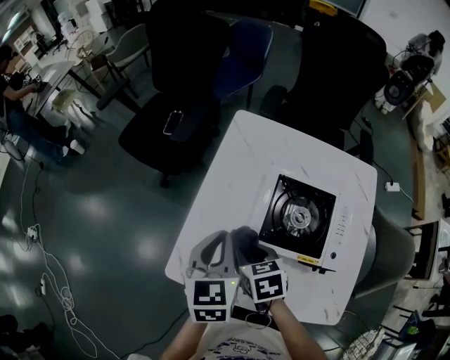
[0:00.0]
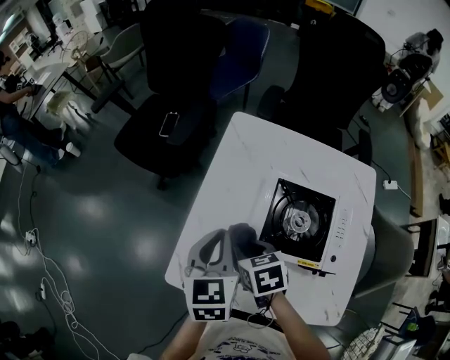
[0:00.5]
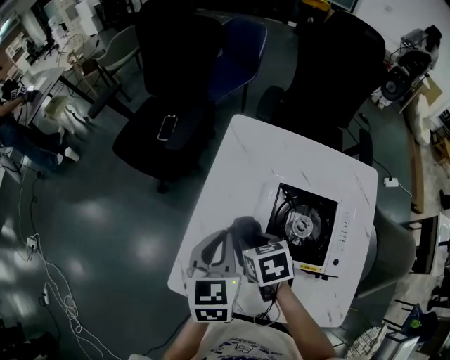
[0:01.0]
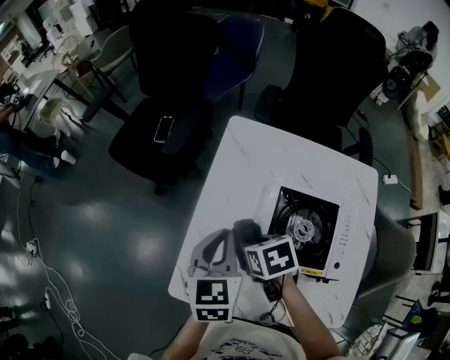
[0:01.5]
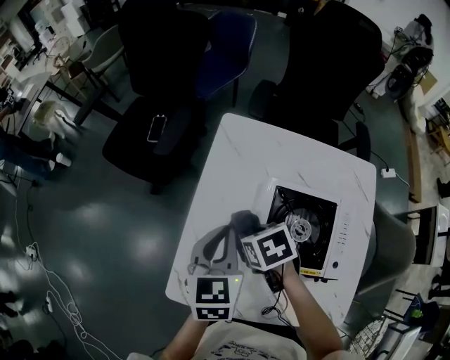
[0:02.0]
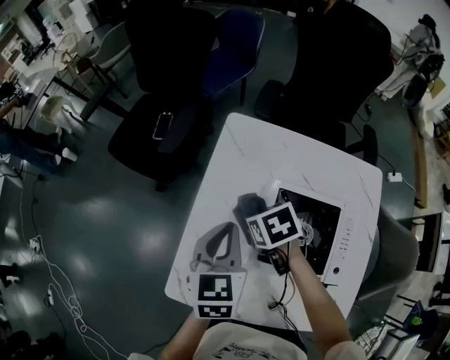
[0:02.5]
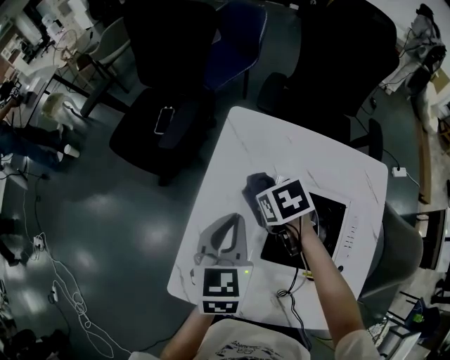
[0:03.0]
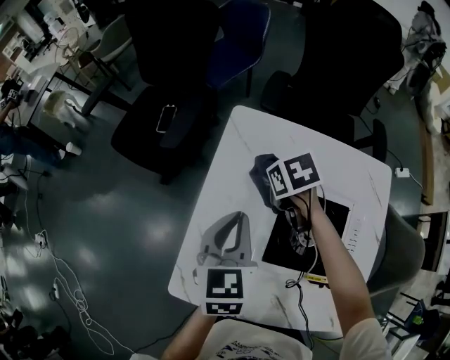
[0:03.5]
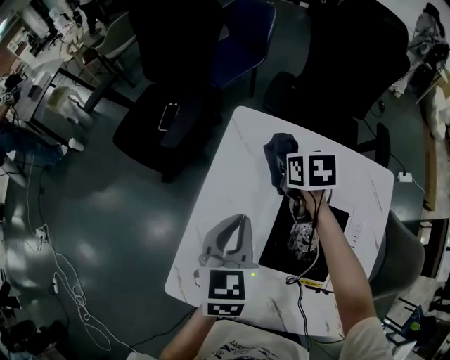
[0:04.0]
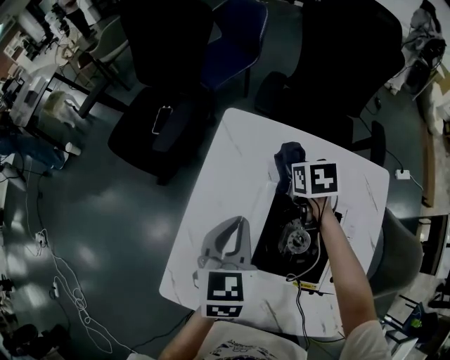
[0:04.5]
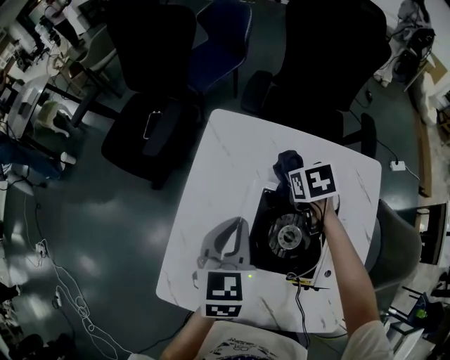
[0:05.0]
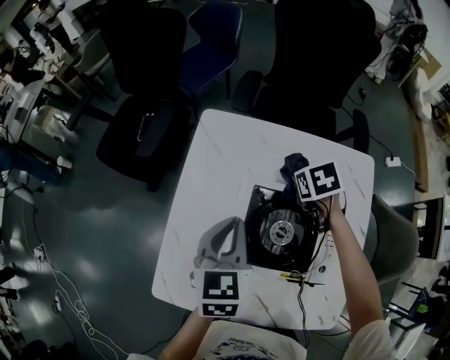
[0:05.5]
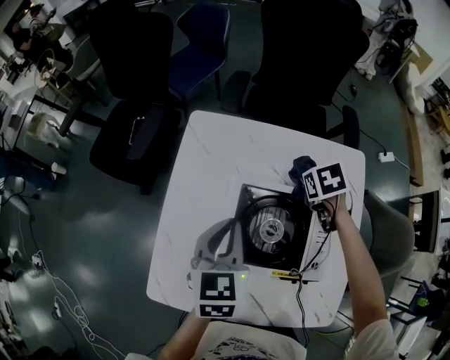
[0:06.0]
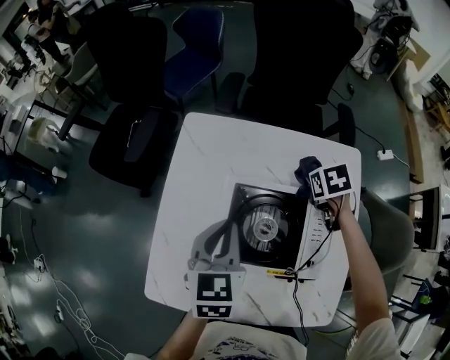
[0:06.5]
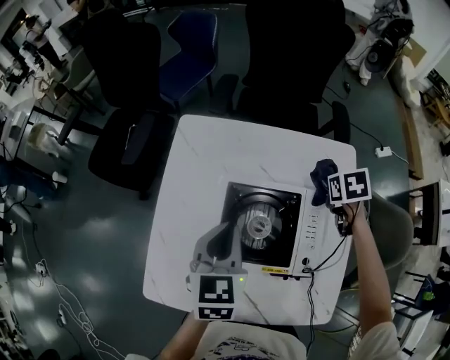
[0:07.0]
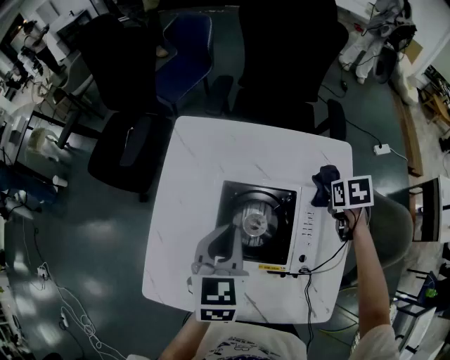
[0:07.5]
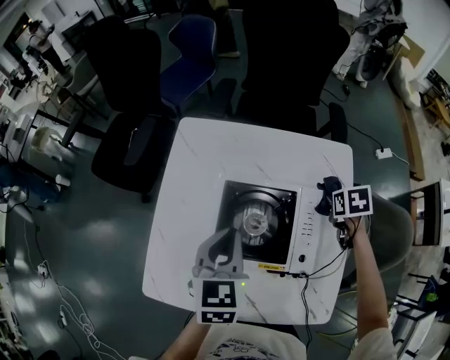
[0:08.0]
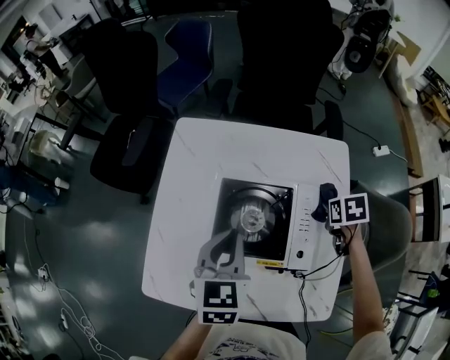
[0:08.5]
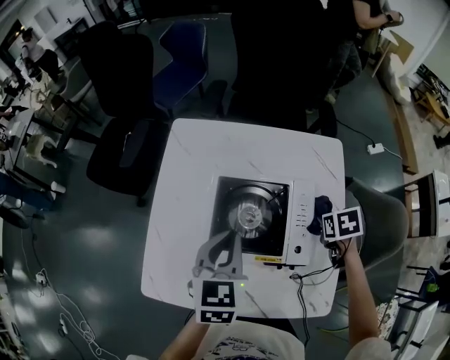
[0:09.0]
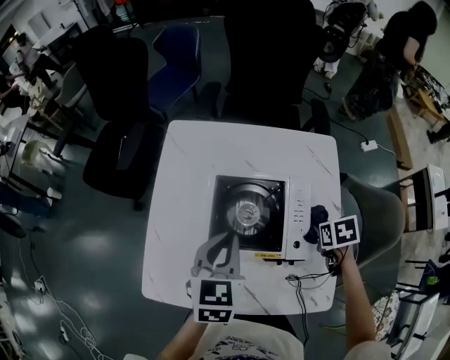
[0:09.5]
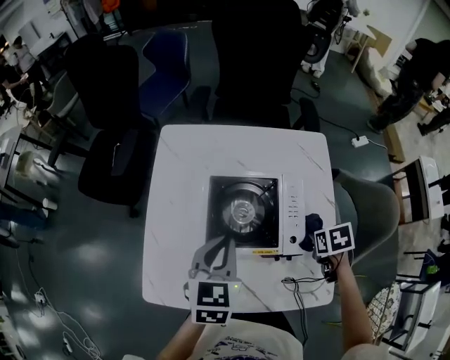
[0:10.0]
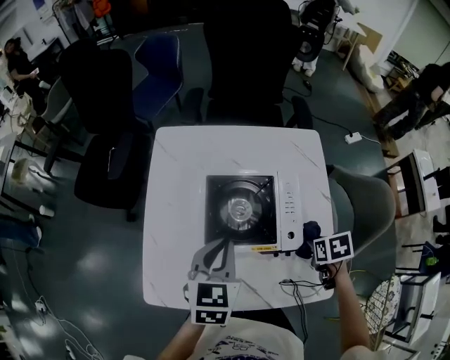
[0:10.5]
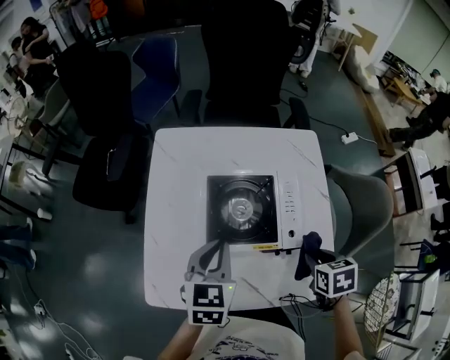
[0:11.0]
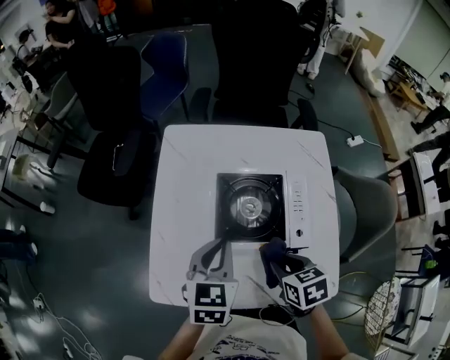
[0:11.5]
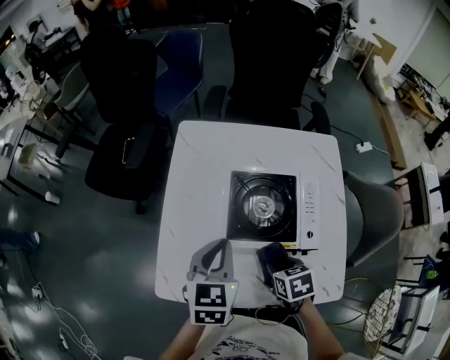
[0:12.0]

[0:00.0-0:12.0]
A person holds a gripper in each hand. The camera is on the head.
0:00.0 to 0:02.0: Both grippers travel together forward, approximately 10 cm.
0:02.0 to 0:04.0: The left gripper ends up approximately 5 cm from where it was. The right gripper heads forward and to the right, covering roughly 25 cm, and changes its angle by about 20 degrees.
0:04.0 to 0:06.0: The right gripper heads to the right and backward, covering some 20 cm, and swivels about 20 degrees. The left gripper shifts about 10 cm to the right.
0:06.0 to 0:08.0: The left gripper ends up some 5 cm from where it was; the right gripper goes some 15 cm to the right and backward.
0:08.0 to 0:10.0: The left gripper ends up about 5 cm from where it was, while the right gripper shifts by approximately 20 cm.
0:10.0 to 0:12.0: The right gripper changes place by about 20 cm; the left gripper moves some 10 cm.

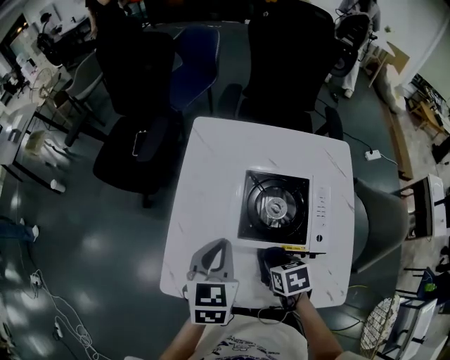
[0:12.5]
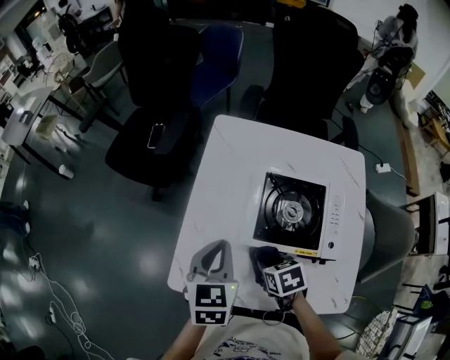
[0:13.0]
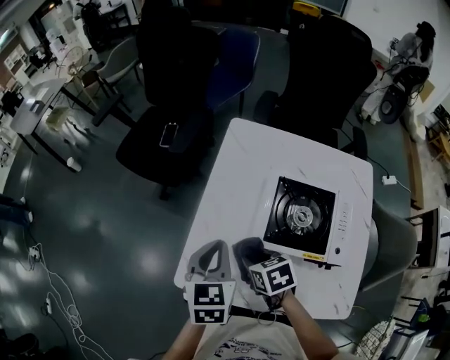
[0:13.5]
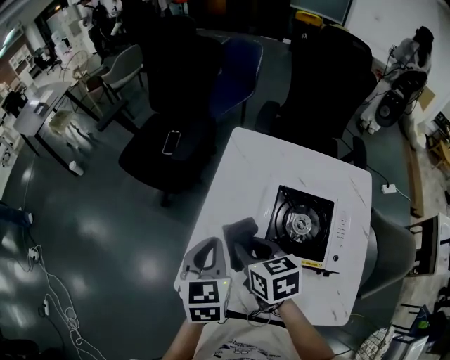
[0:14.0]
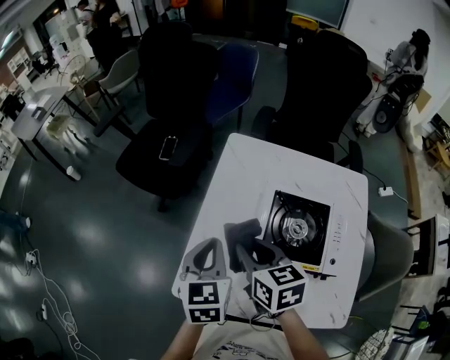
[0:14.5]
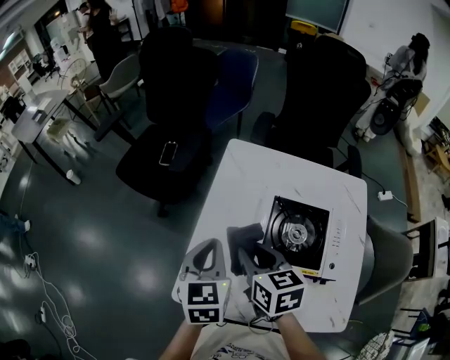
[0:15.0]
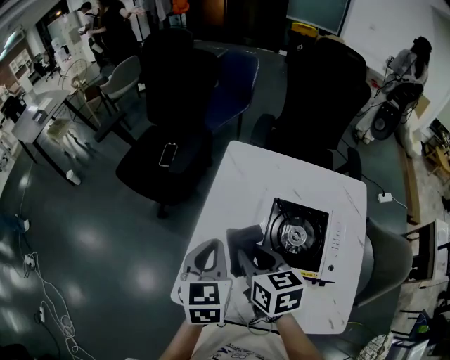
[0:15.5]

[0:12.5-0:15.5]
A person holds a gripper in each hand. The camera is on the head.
0:12.5 to 0:14.0: The right gripper goes roughly 25 cm to the left, upward and forward, and turns by roughly 30 degrees. Meanwhile the left gripper heads to the left, covering some 10 cm.
0:14.0 to 0:15.5: The grippers make only small movements.

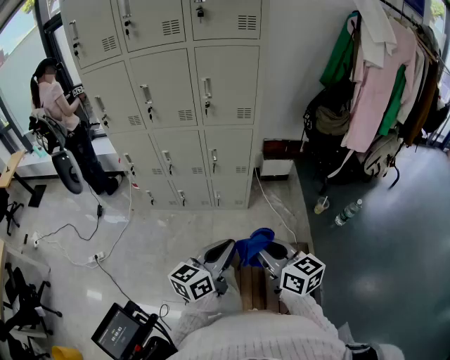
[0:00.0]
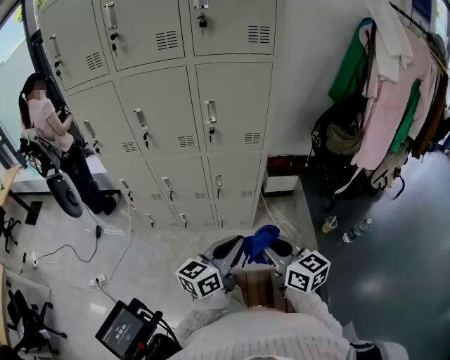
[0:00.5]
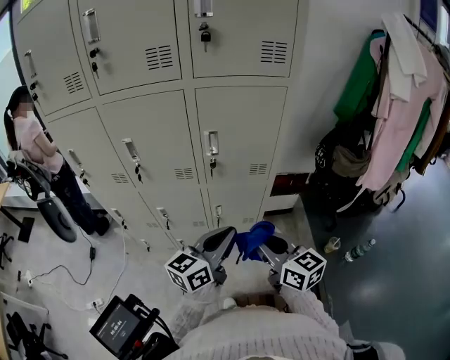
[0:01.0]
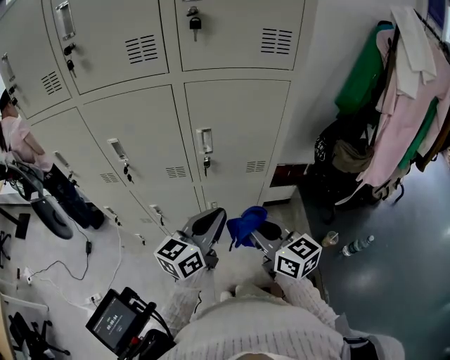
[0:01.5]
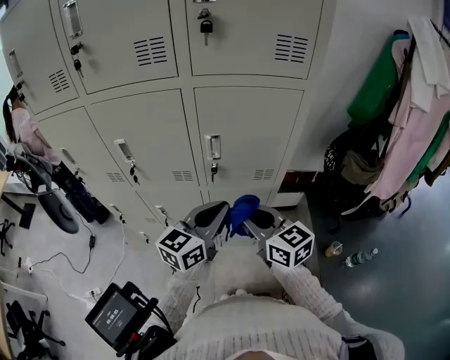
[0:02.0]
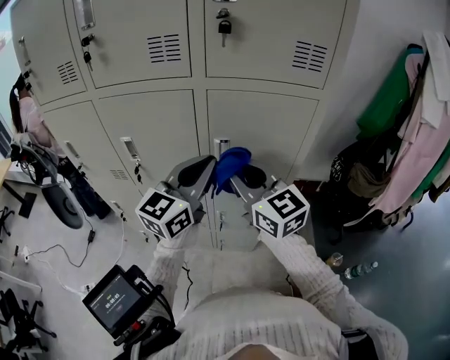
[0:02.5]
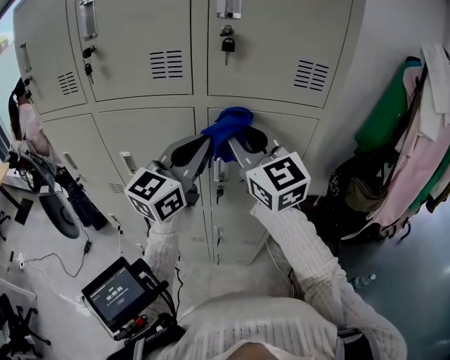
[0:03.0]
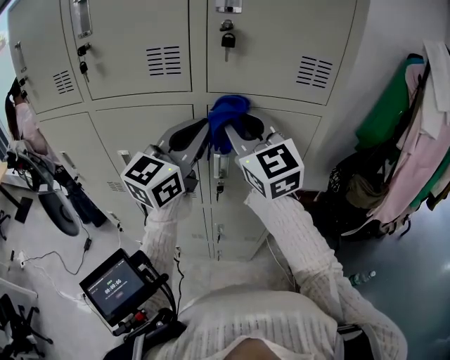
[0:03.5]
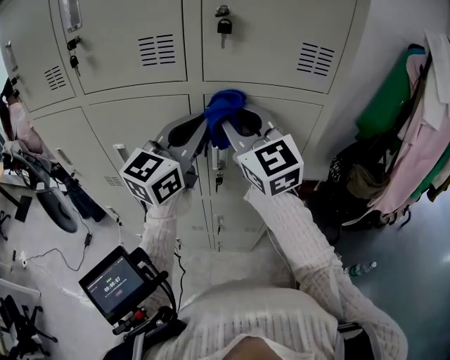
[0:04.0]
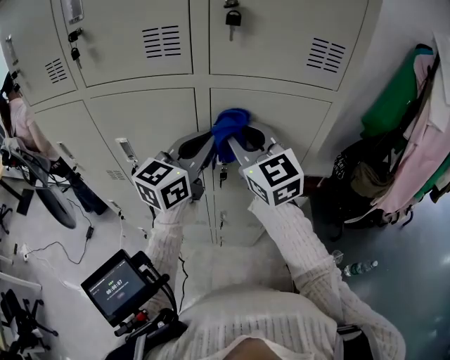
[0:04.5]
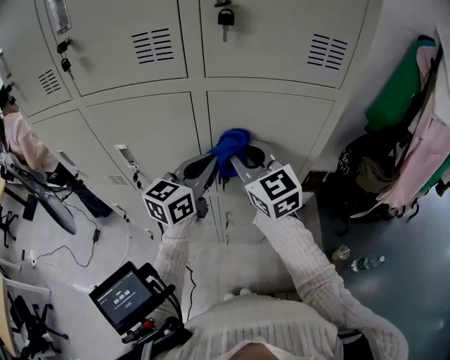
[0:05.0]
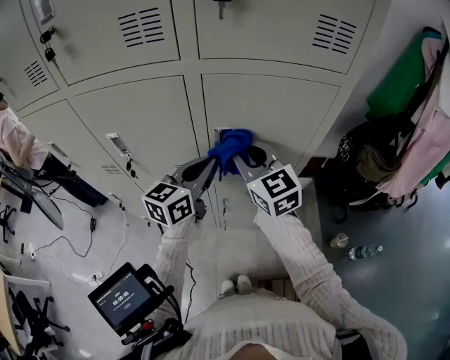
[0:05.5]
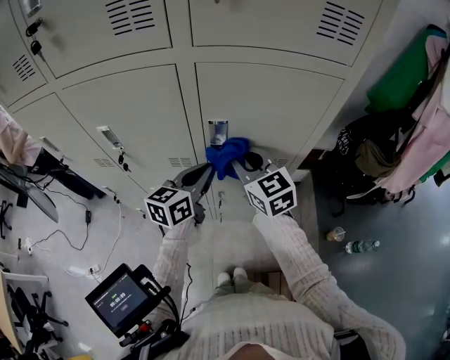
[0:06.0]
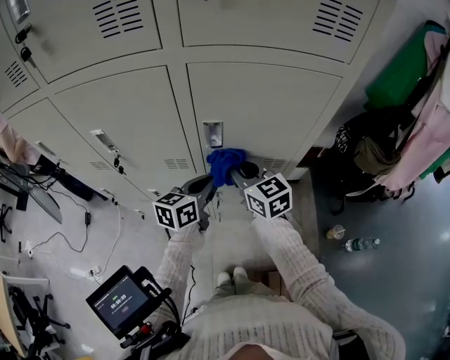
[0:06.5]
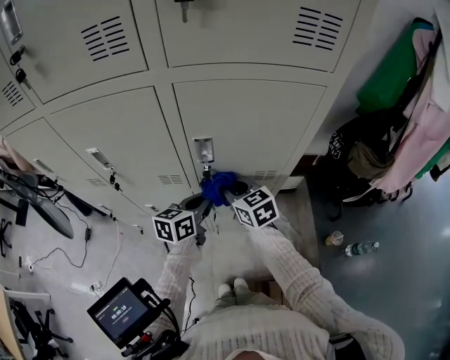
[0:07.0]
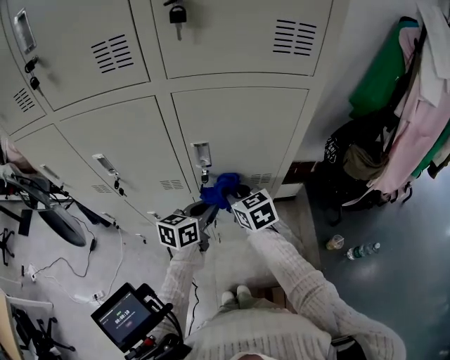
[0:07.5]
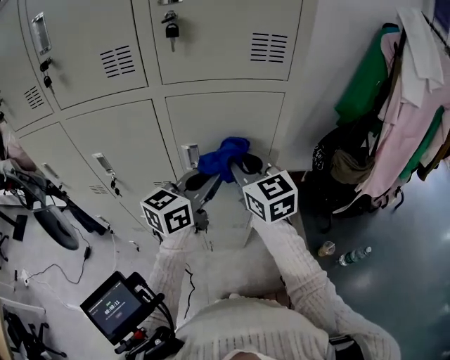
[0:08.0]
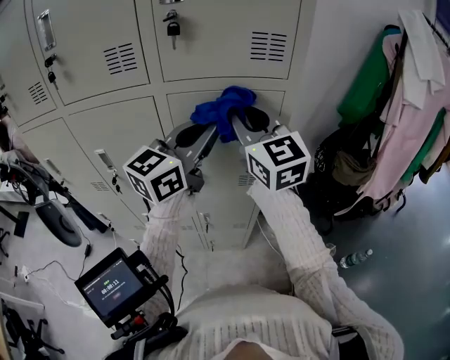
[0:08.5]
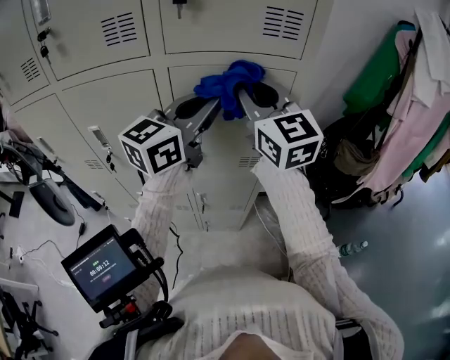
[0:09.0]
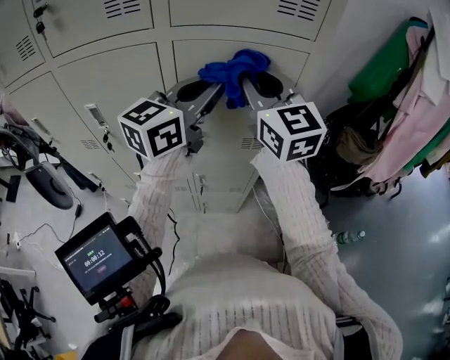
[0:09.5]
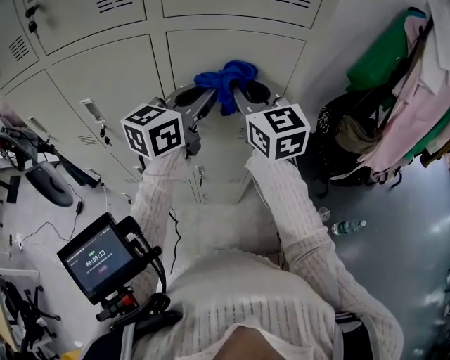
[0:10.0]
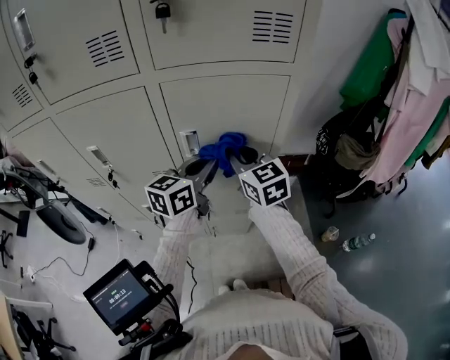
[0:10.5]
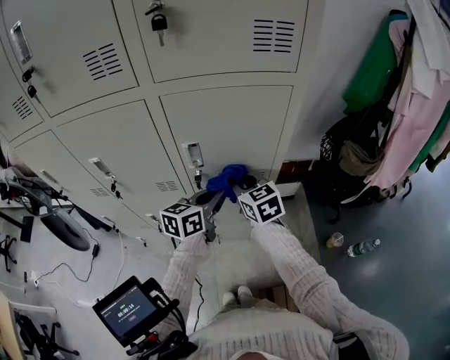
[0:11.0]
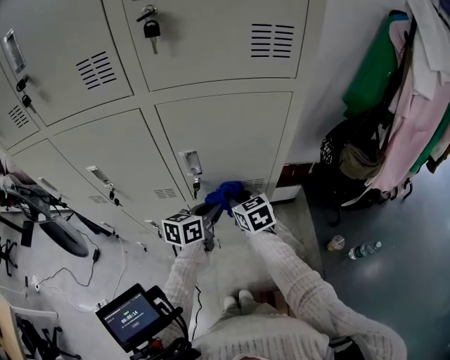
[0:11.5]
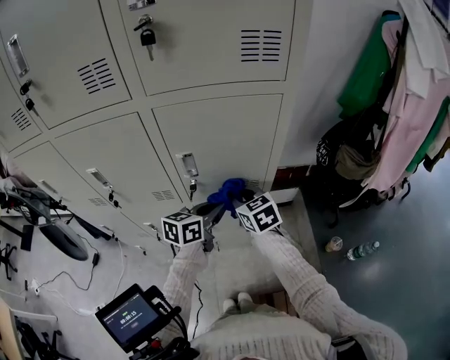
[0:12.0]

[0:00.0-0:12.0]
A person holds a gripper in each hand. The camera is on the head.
0:00.0 to 0:02.0: Both grippers are carried forward, some 50 cm.
0:02.0 to 0:04.0: The grippers both shift upward and forward by approximately 25 cm. The left gripper turns by some 20 degrees. The right gripper swivels roughly 40 degrees.
0:04.0 to 0:06.0: The grippers both shift downward by some 25 cm. The left gripper turns by roughly 40 degrees. Meanwhile the right gripper changes its angle by approximately 30 degrees.
0:06.0 to 0:08.0: The grippers both shift upward and to the right by roughly 15 cm.
0:08.0 to 0:10.0: The right gripper moves about 10 cm upward and comes back.
0:10.0 to 0:12.0: The two grippers go about 20 cm downward. The right gripper swivels some 30 degrees; the left gripper turns by some 30 degrees.
